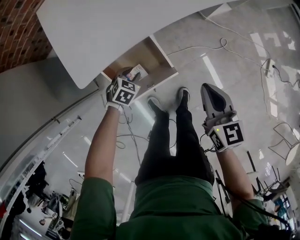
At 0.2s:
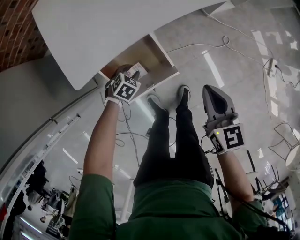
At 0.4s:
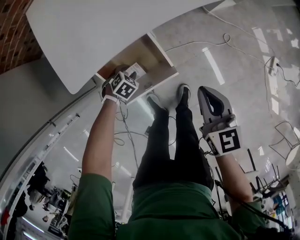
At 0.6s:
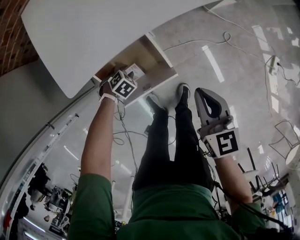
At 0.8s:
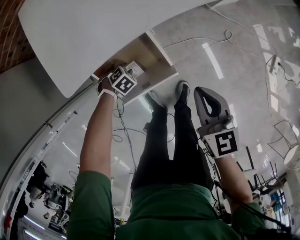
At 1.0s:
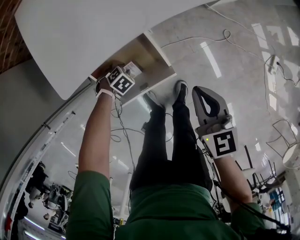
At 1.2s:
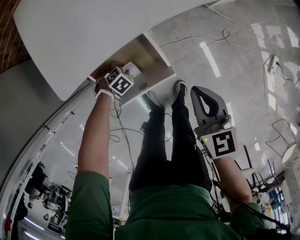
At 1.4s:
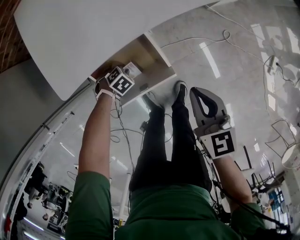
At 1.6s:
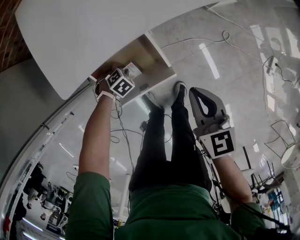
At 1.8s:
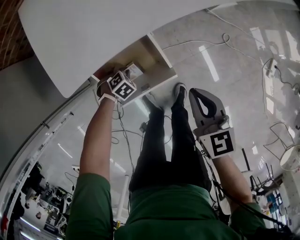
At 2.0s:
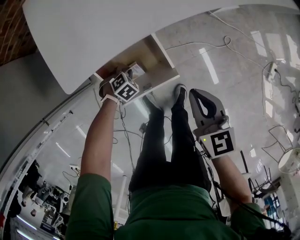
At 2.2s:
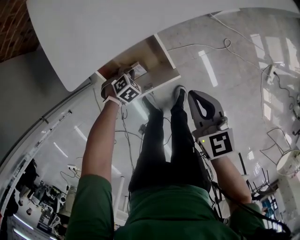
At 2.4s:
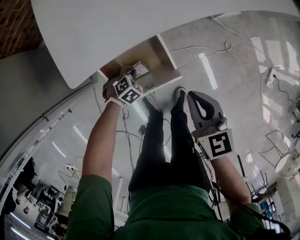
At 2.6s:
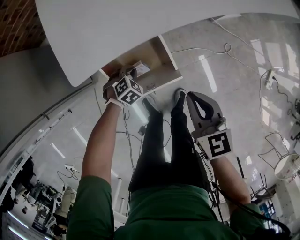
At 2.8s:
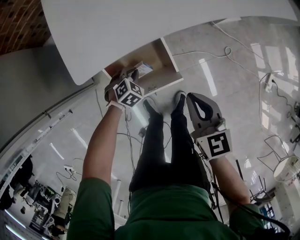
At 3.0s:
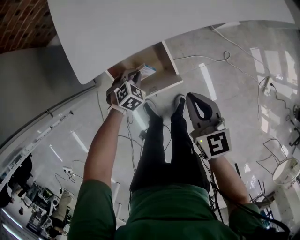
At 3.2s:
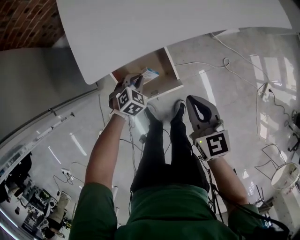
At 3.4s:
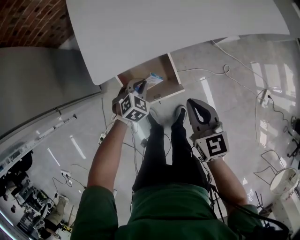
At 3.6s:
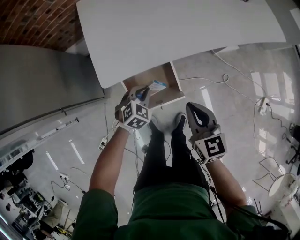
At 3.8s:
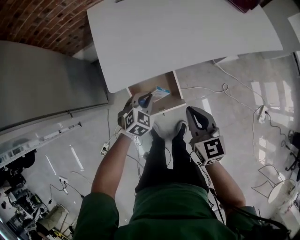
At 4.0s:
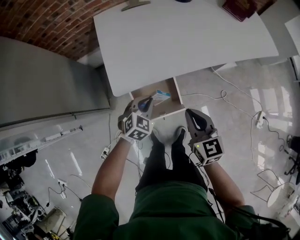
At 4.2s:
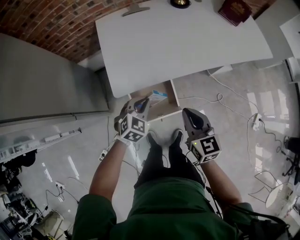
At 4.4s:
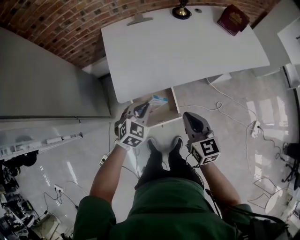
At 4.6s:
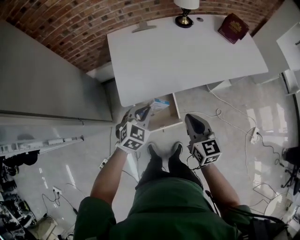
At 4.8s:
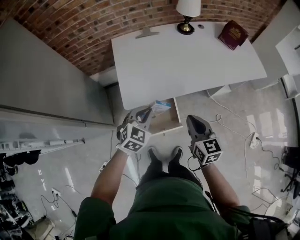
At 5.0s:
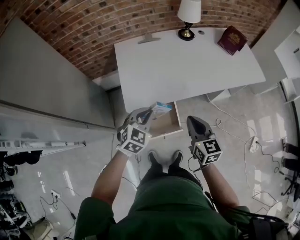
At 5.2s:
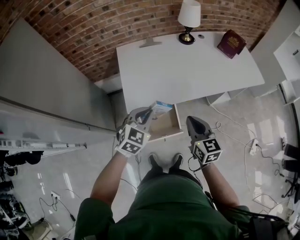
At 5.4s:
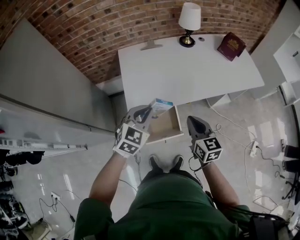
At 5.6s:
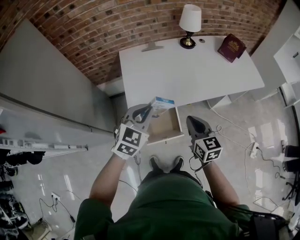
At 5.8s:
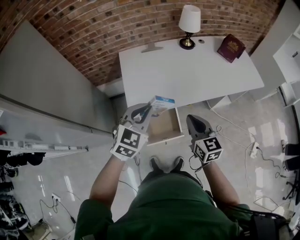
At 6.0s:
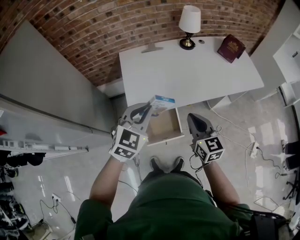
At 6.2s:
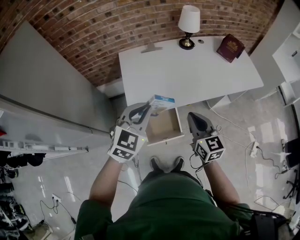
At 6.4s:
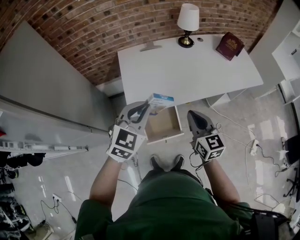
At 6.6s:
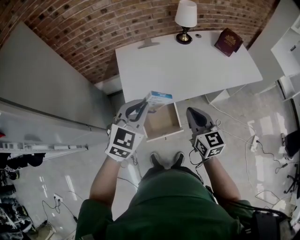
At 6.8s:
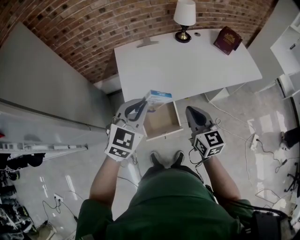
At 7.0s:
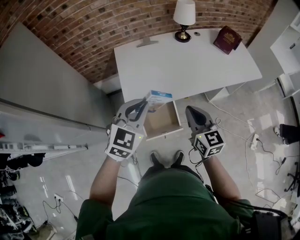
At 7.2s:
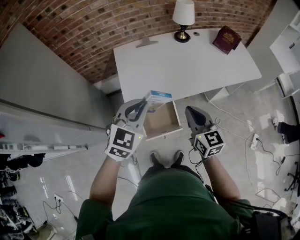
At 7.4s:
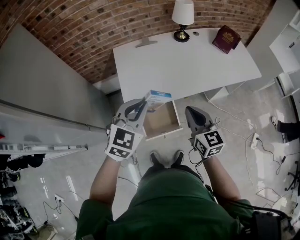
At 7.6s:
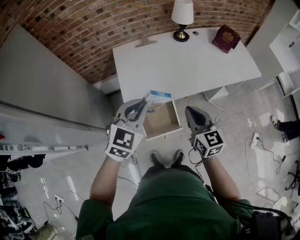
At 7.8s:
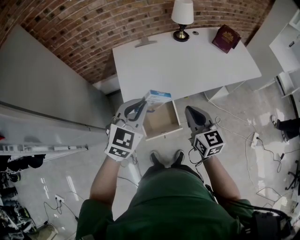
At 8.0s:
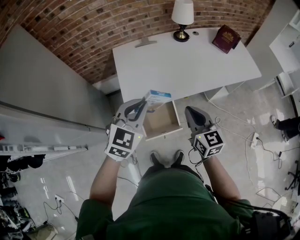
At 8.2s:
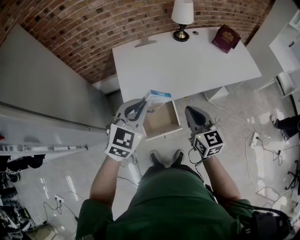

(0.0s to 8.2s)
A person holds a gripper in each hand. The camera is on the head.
0.0s - 1.6s: The left gripper goes some 10 cm downward, and rotates roughly 20 degrees. Meanwhile the right gripper moves downward, some 5 cm.
1.6s - 3.2s: The left gripper moves upward, some 15 cm, and turns by roughly 30 degrees, while the right gripper is displaced upward by some 5 cm.
3.2s - 5.0s: The right gripper is displaced upward by roughly 20 cm, while the left gripper shifts some 35 cm upward, and turns by roughly 30 degrees.
5.0s - 6.6s: The right gripper moves upward, about 5 cm; the left gripper shifts some 15 cm upward.
6.6s - 8.2s: The two grippers keep their place.

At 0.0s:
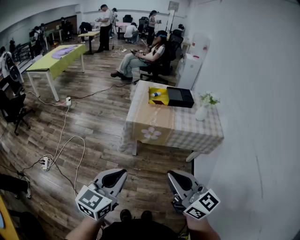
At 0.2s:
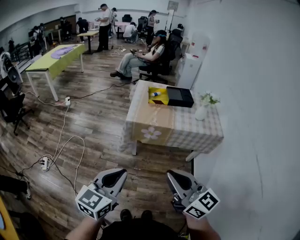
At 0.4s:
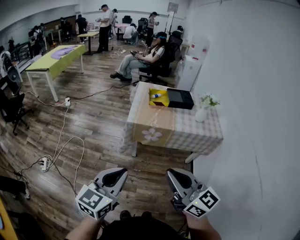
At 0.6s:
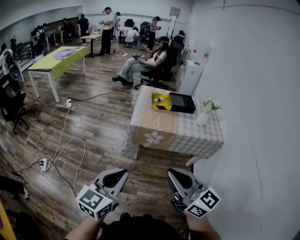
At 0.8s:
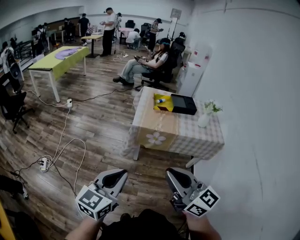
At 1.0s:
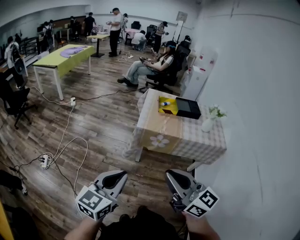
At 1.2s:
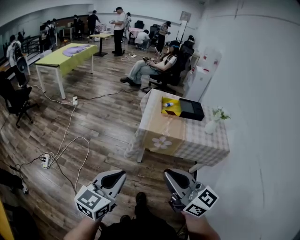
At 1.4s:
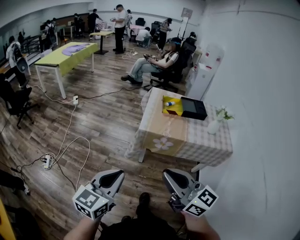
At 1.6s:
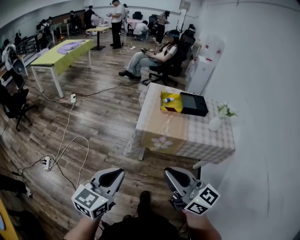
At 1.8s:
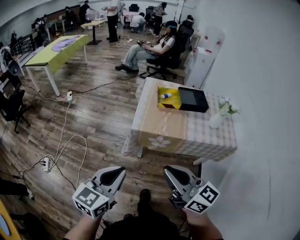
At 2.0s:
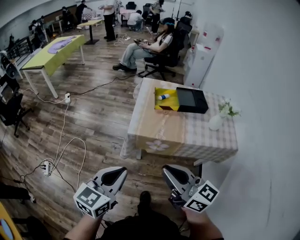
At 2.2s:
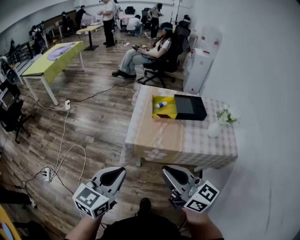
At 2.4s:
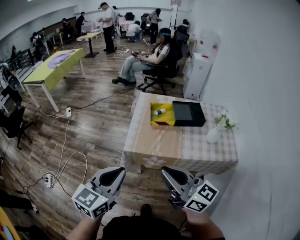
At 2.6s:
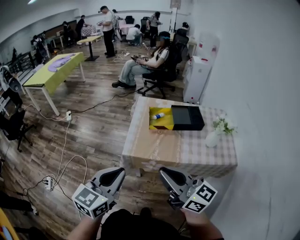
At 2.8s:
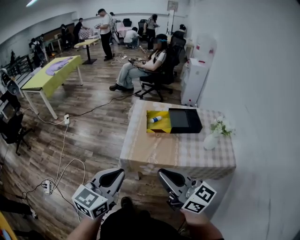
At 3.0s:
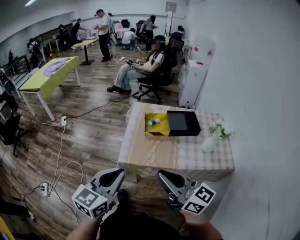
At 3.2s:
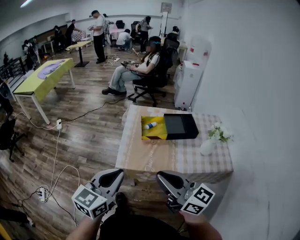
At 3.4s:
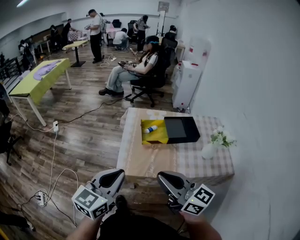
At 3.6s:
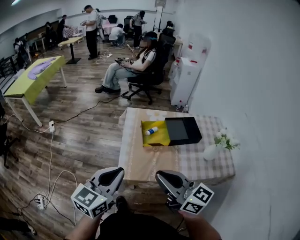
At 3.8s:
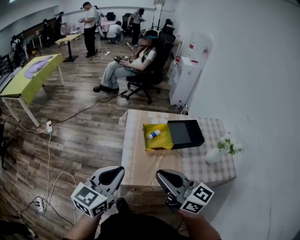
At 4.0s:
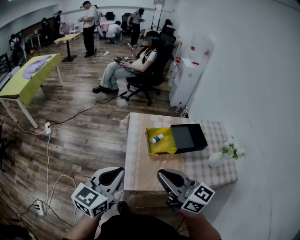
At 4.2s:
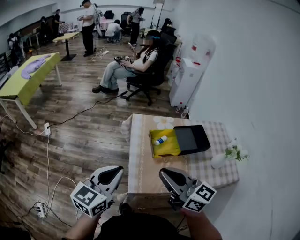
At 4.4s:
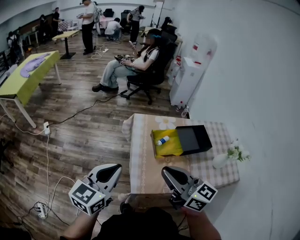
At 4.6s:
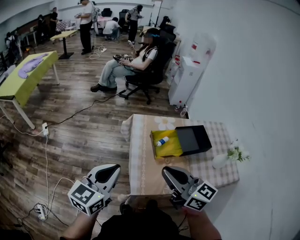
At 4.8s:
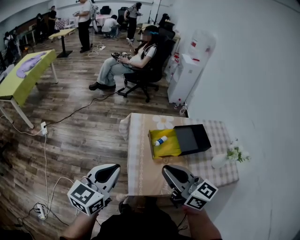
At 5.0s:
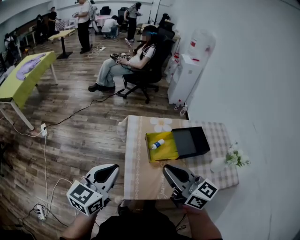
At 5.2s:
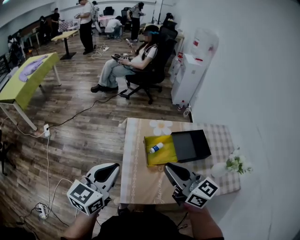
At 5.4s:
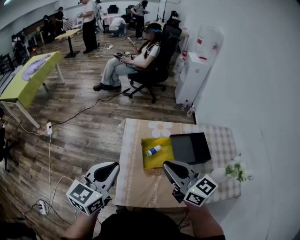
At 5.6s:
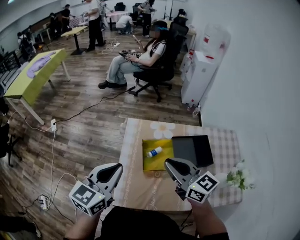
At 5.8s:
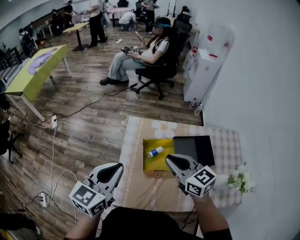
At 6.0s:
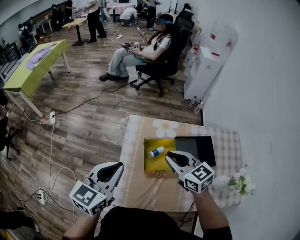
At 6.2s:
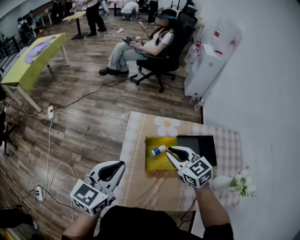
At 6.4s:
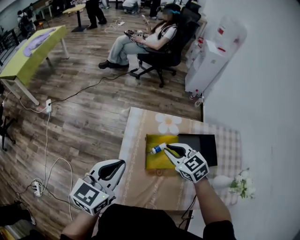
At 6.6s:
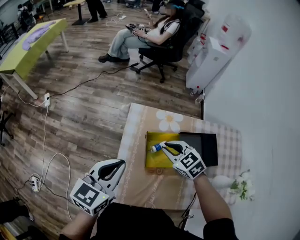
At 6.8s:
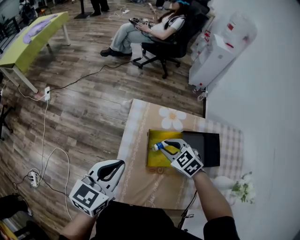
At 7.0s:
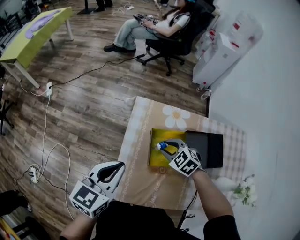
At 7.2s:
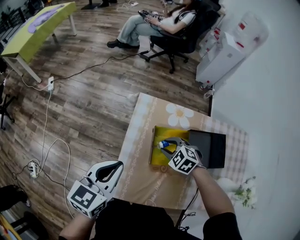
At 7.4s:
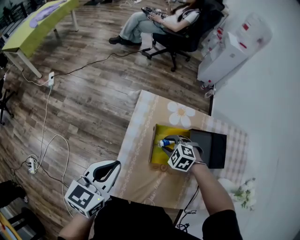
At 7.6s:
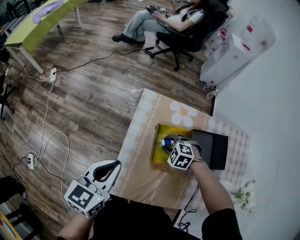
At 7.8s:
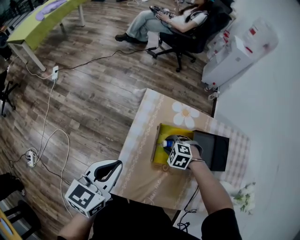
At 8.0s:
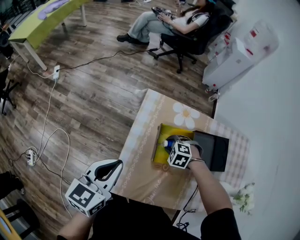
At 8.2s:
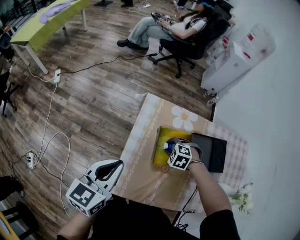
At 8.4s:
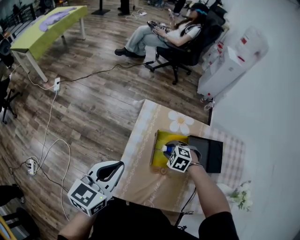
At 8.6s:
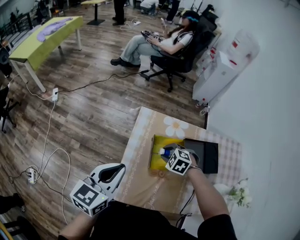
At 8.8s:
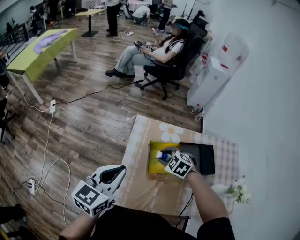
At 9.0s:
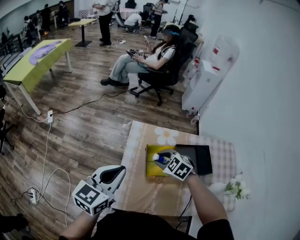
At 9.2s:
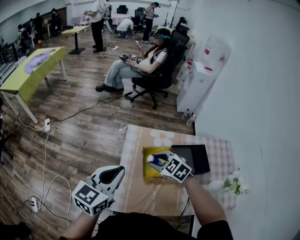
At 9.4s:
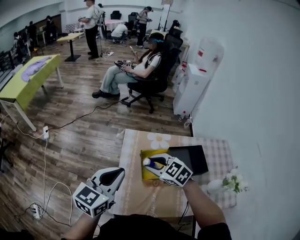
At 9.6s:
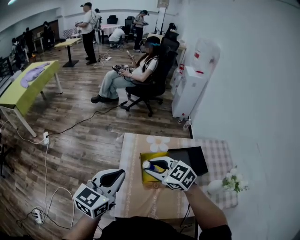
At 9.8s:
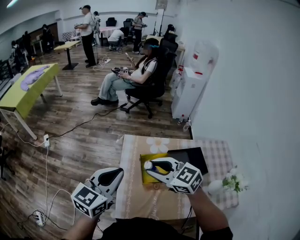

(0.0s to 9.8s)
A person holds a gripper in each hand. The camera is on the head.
0.0s - 1.4s: Both grippers travel together to the left and forward, roughly 10 cm.
1.4s - 2.8s: The two grippers go roughly 30 cm forward and to the right.
2.8s - 4.2s: The grippers both shift forward by some 25 cm.
4.2s - 5.6s: Both grippers move forward and to the right, about 20 cm.
5.6s - 7.0s: The left gripper heads downward, covering about 10 cm. Meanwhile the right gripper is displaced downward and forward by approximately 25 cm, and points its fingers approximately 50 degrees further downward.
7.0s - 8.4s: The right gripper changes its angle by about 20 degrees.
8.4s - 9.8s: The left gripper moves upward, approximately 10 cm, and rotates about 20 degrees. Meanwhile the right gripper is displaced upward by approximately 30 cm, and angles its fingers upward, by roughly 50 degrees.

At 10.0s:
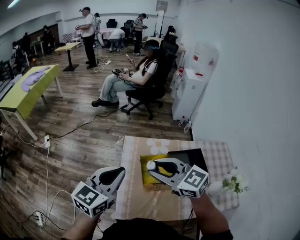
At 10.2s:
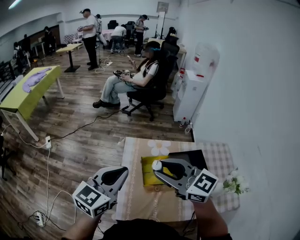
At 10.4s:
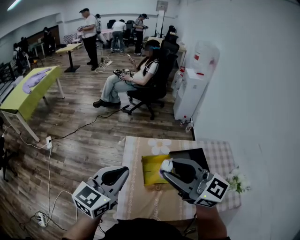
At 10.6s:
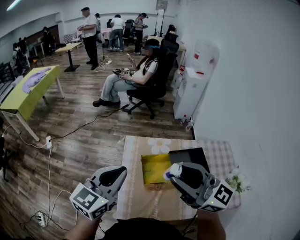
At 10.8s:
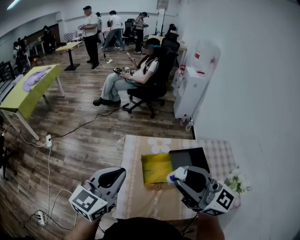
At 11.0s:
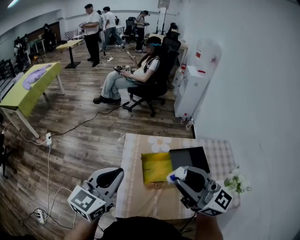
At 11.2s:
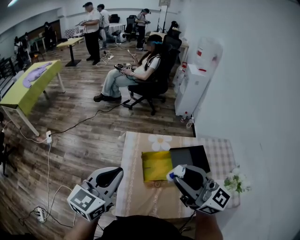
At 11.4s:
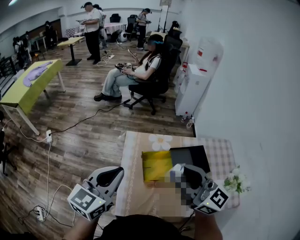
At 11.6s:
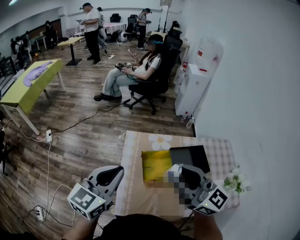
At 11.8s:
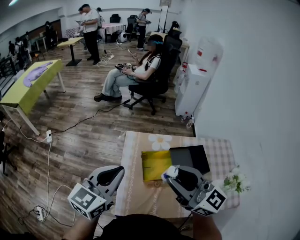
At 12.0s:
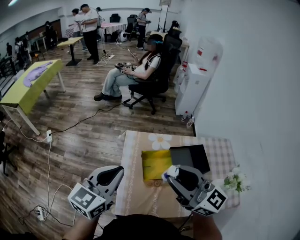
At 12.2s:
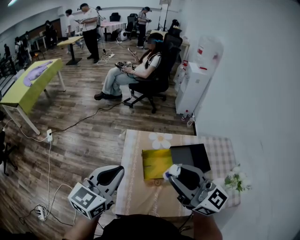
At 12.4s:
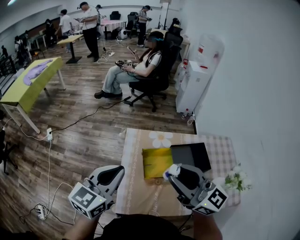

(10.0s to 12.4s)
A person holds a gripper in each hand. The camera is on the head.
10.0s - 11.2s: The right gripper heads upward, backward and to the right, covering approximately 15 cm, and tilts its fingers some 30 degrees upward.
11.2s - 12.4s: There are only small adjustments of the grippers.

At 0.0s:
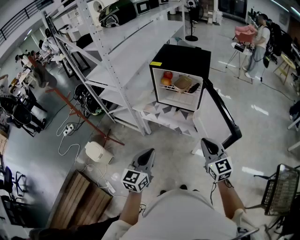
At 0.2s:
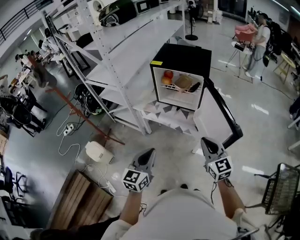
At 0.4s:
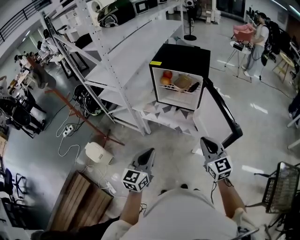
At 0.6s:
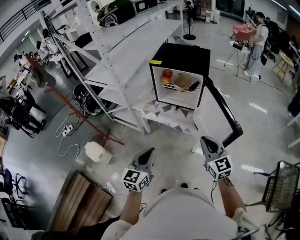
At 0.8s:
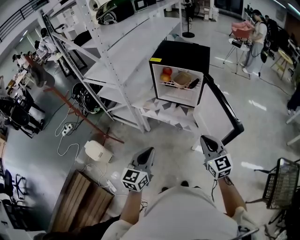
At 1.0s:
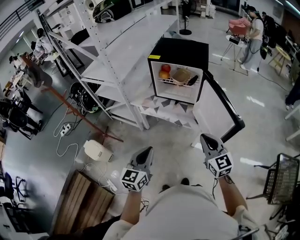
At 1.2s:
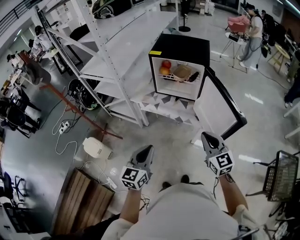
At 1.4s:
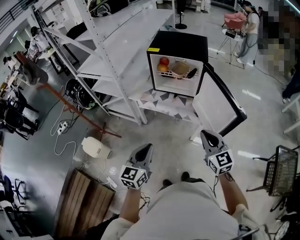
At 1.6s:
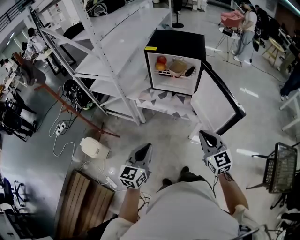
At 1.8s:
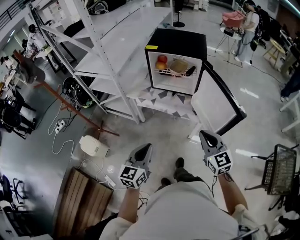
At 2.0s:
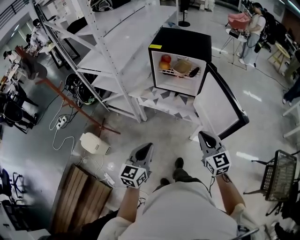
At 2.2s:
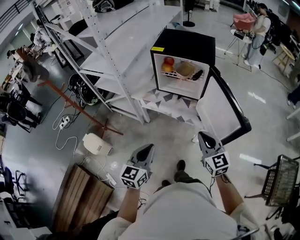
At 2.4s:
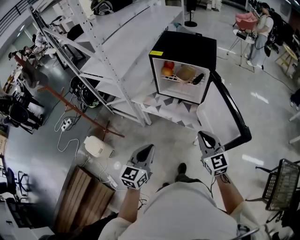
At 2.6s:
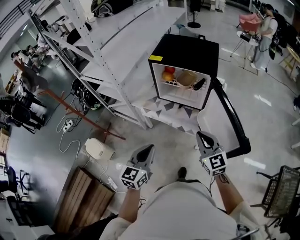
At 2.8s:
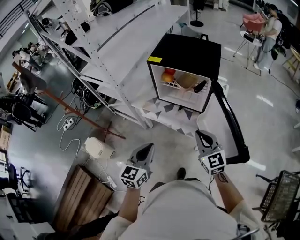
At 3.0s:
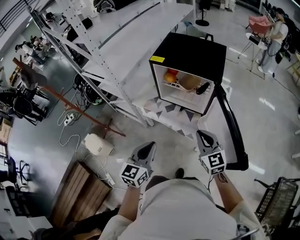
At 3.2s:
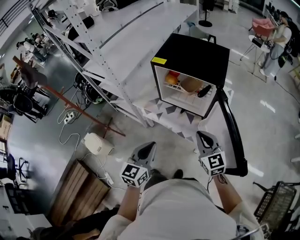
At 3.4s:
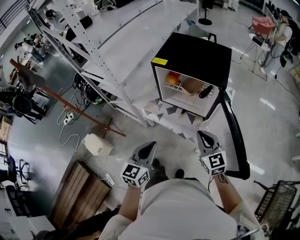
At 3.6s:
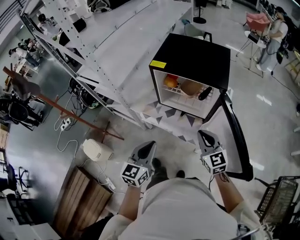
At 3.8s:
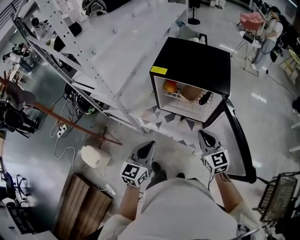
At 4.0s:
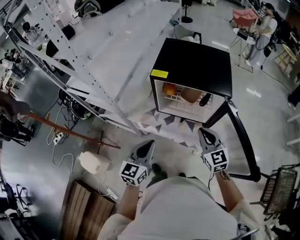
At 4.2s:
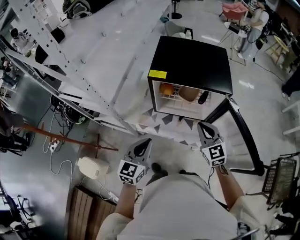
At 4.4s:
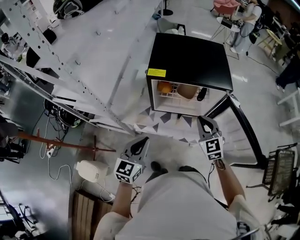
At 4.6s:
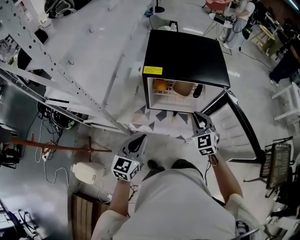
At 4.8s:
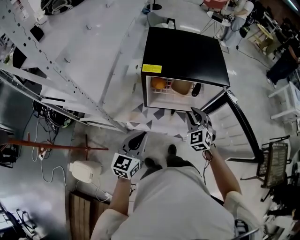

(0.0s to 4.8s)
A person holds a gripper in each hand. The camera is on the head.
0.0s - 1.6s: The grippers both shift to the left by approximately 5 cm.
1.6s - 3.2s: The grippers both shift forward by about 20 cm.
3.2s - 4.8s: The left gripper shifts by some 25 cm, and rotates about 20 degrees; the right gripper moves roughly 20 cm, and changes its angle by approximately 40 degrees.
